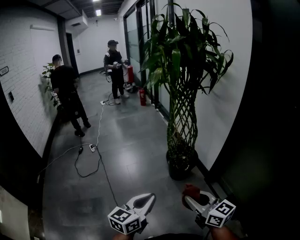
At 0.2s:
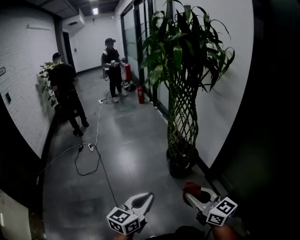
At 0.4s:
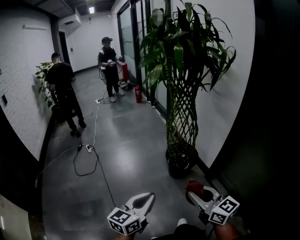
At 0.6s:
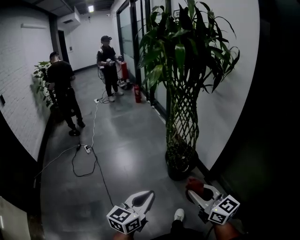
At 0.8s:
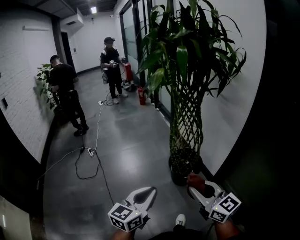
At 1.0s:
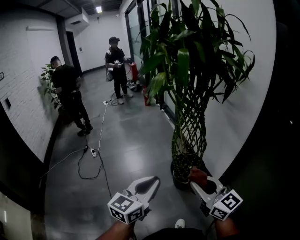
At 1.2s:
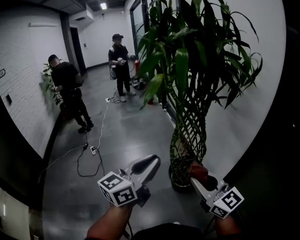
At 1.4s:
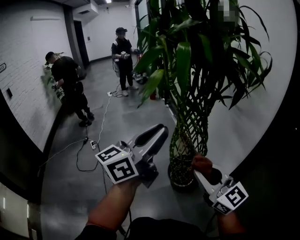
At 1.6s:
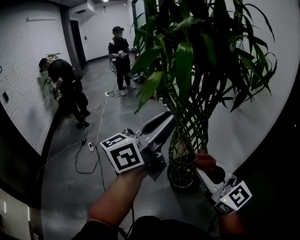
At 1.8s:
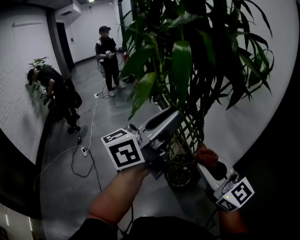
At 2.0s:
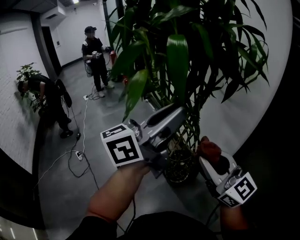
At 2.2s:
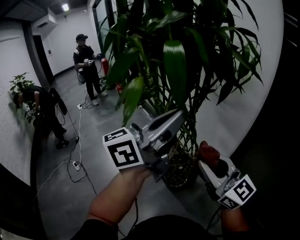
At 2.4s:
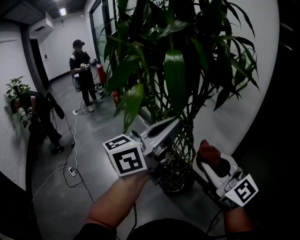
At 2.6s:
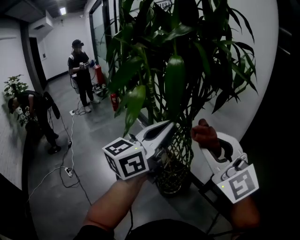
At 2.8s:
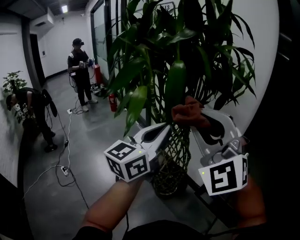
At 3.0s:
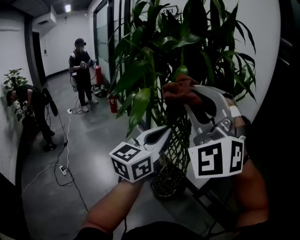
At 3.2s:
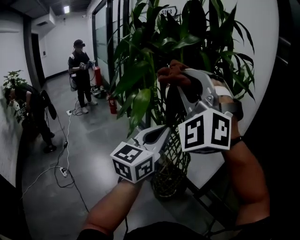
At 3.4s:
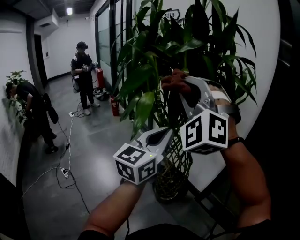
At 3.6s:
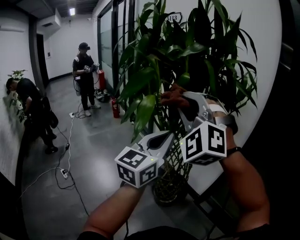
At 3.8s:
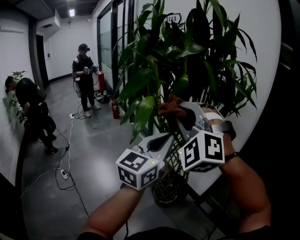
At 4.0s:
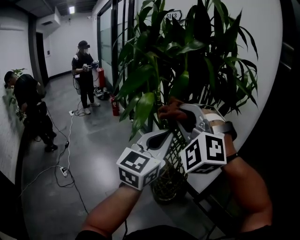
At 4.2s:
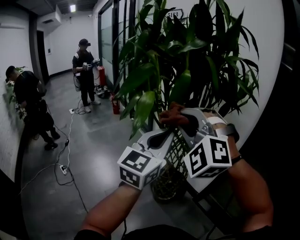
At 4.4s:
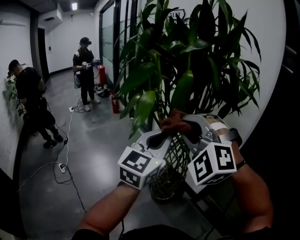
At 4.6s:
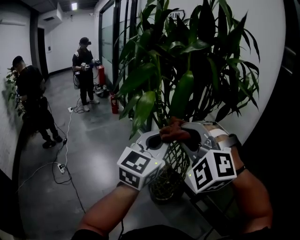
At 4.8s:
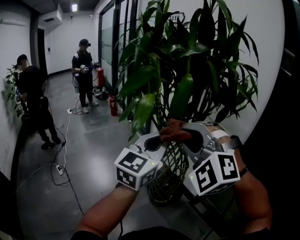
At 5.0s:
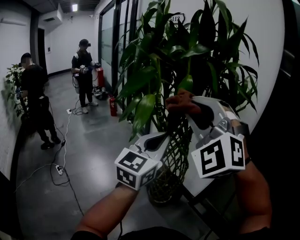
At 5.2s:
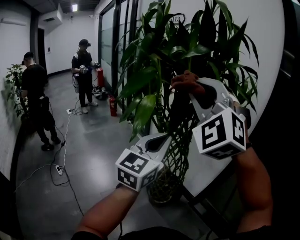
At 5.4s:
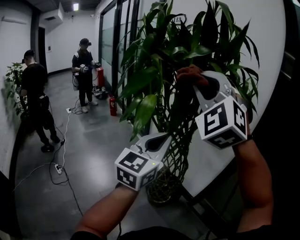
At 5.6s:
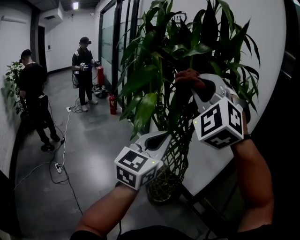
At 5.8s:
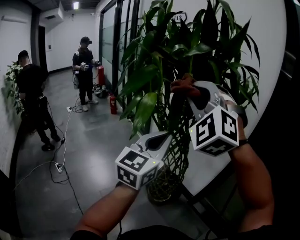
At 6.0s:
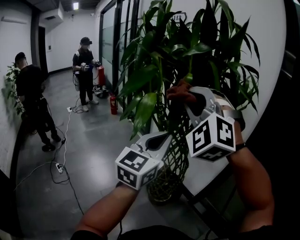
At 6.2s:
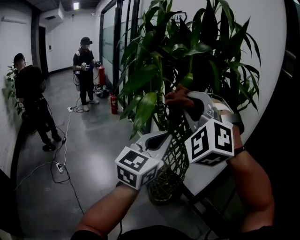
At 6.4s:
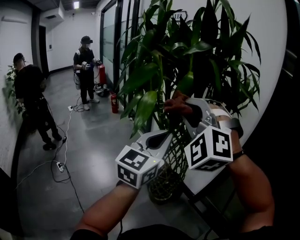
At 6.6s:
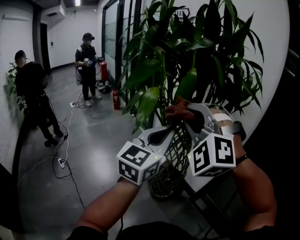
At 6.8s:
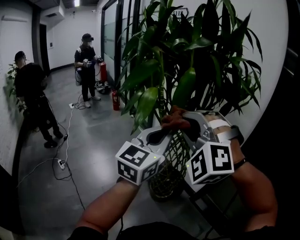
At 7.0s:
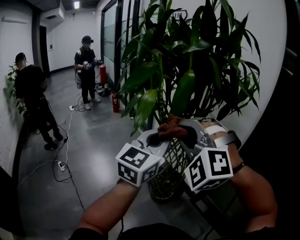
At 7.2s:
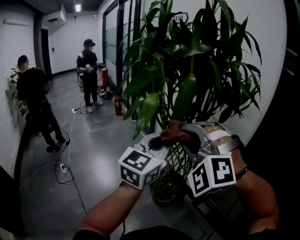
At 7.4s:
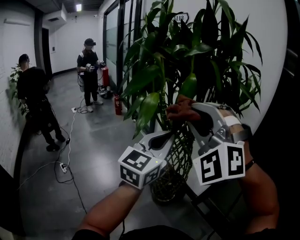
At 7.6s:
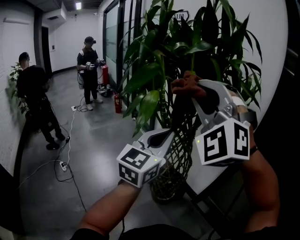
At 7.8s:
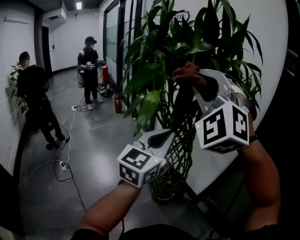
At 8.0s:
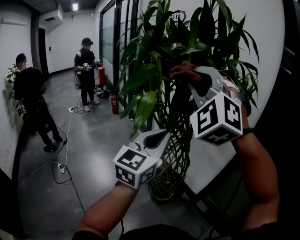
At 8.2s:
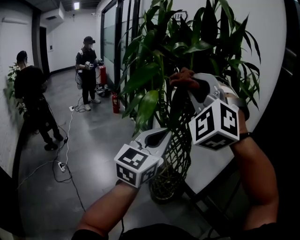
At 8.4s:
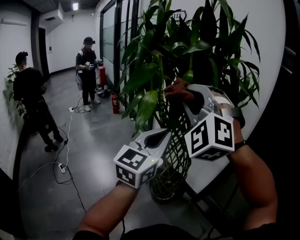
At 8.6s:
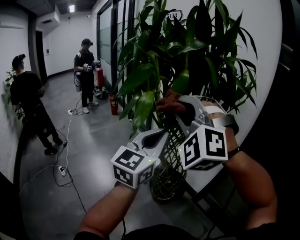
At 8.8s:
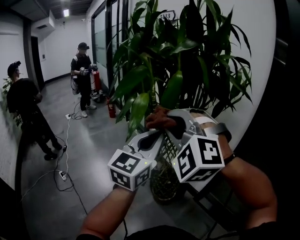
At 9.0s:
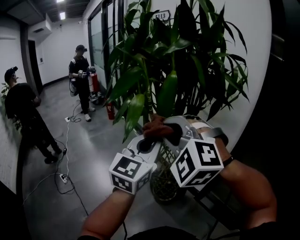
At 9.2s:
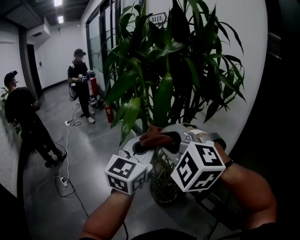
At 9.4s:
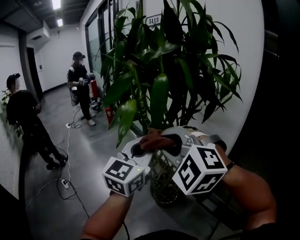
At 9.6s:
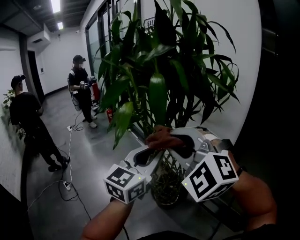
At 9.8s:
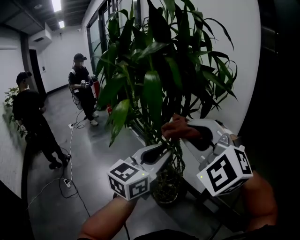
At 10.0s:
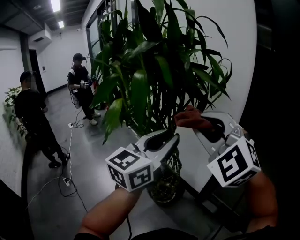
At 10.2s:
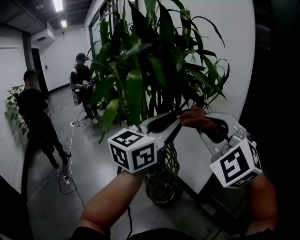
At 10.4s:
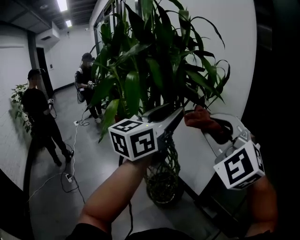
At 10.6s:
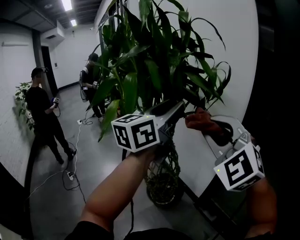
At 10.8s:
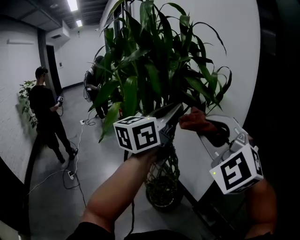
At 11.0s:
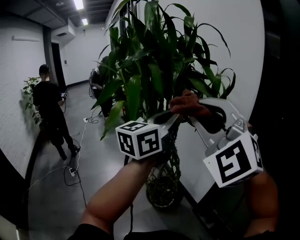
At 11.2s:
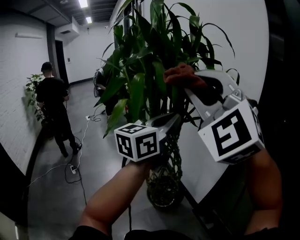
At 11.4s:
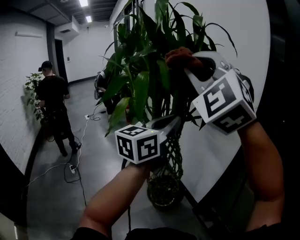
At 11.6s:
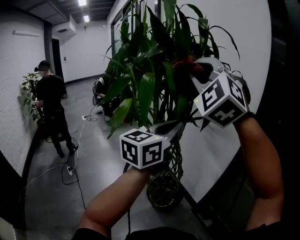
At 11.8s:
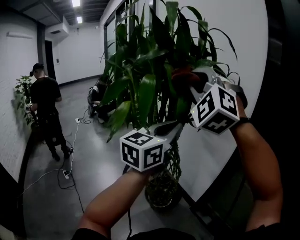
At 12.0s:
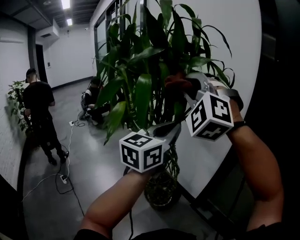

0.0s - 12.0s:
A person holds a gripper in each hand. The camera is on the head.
0.0s - 1.6s: The right gripper travels forward by approximately 35 cm, and changes its angle by roughly 30 degrees. The left gripper shifts about 50 cm forward and upward, swivels about 30 degrees, and opens its fingers.
1.6s - 3.0s: The left gripper heads forward, covering approximately 5 cm, and closes, while the right gripper moves upward and to the left, about 25 cm, and rotates around the line of its fingers by approximately 70 degrees, counterclockwise from behind.
3.0s - 4.4s: The right gripper goes some 10 cm downward, and changes its angle by approximately 30 degrees.
4.4s - 6.0s: The right gripper moves upward, about 10 cm.
6.0s - 7.6s: The right gripper travels downward and back again, some 10 cm each way.
7.6s - 9.0s: The right gripper goes approximately 15 cm downward, and turns by roughly 30 degrees.
9.0s - 10.4s: The right gripper heads to the right, covering some 25 cm. The left gripper shifts approximately 20 cm to the right and upward, turns by about 20 degrees, and opens up.
10.4s - 12.0s: The right gripper shifts about 15 cm to the left, forward and upward, and rotates some 20 degrees; the left gripper changes place by approximately 5 cm, and closes up.

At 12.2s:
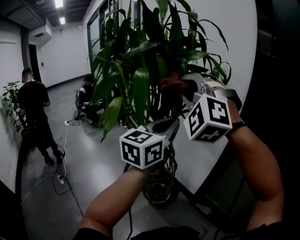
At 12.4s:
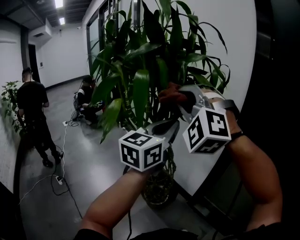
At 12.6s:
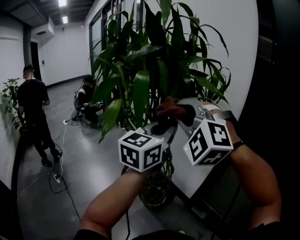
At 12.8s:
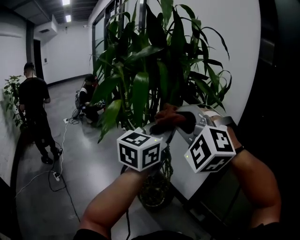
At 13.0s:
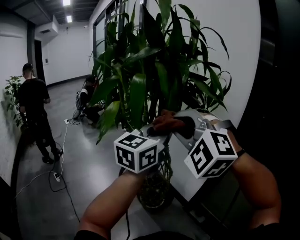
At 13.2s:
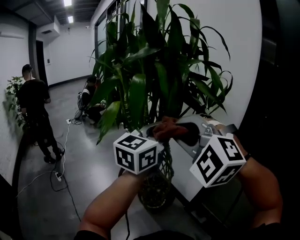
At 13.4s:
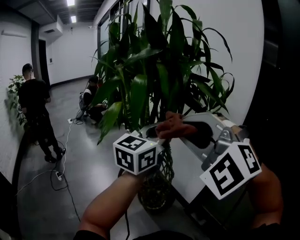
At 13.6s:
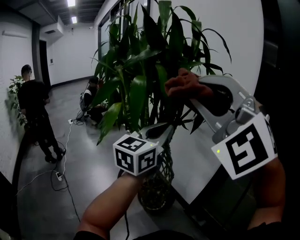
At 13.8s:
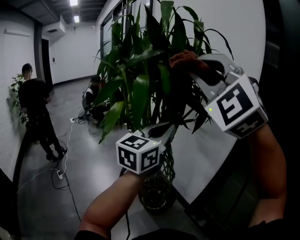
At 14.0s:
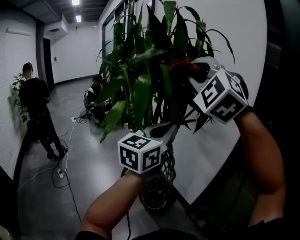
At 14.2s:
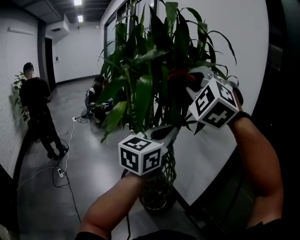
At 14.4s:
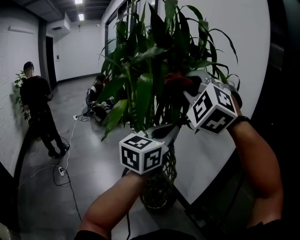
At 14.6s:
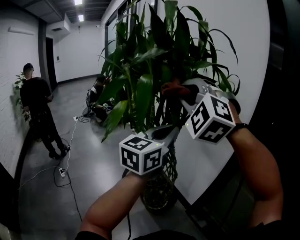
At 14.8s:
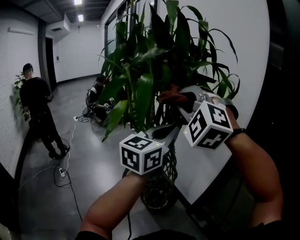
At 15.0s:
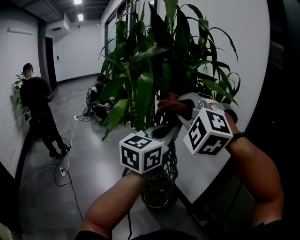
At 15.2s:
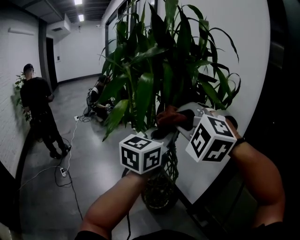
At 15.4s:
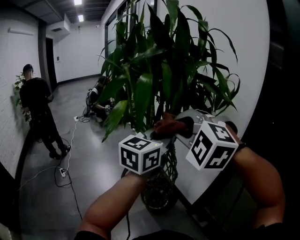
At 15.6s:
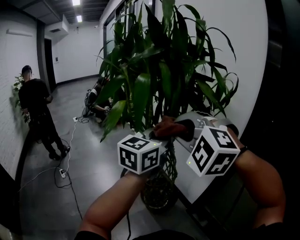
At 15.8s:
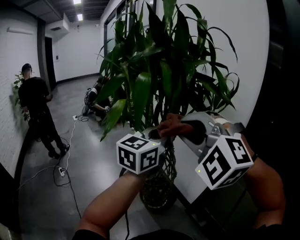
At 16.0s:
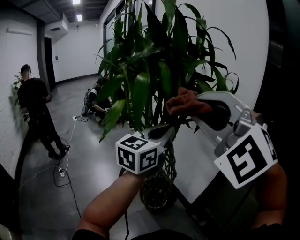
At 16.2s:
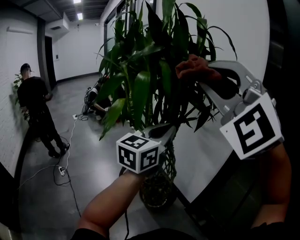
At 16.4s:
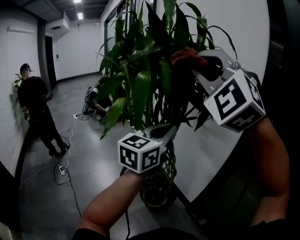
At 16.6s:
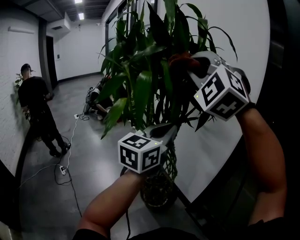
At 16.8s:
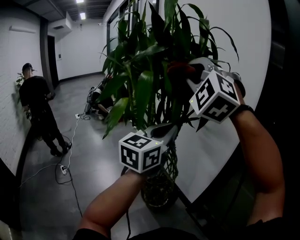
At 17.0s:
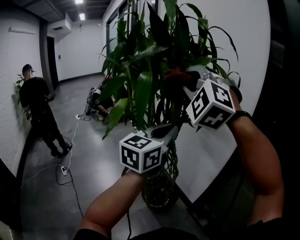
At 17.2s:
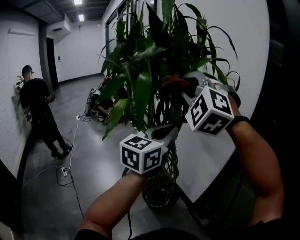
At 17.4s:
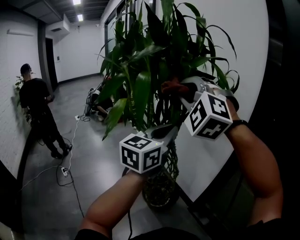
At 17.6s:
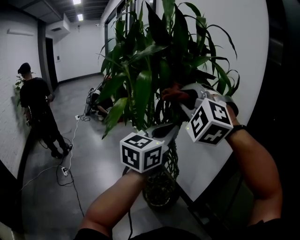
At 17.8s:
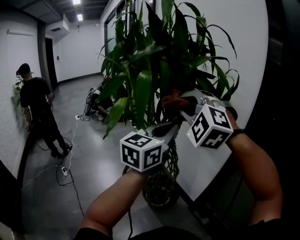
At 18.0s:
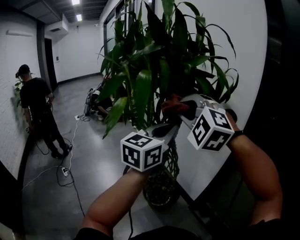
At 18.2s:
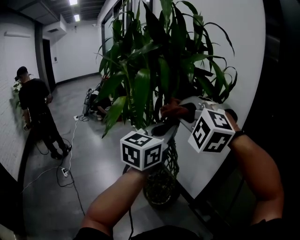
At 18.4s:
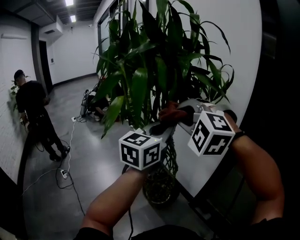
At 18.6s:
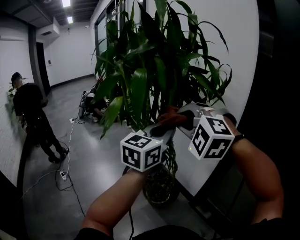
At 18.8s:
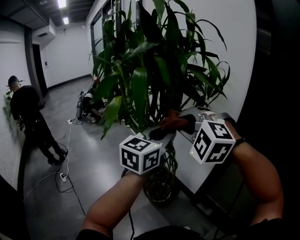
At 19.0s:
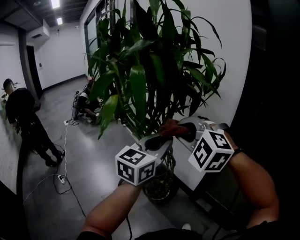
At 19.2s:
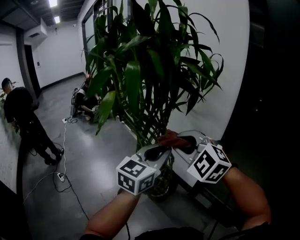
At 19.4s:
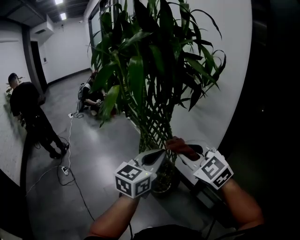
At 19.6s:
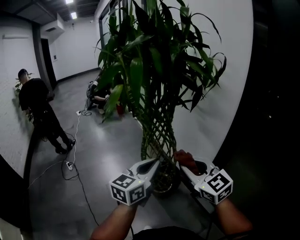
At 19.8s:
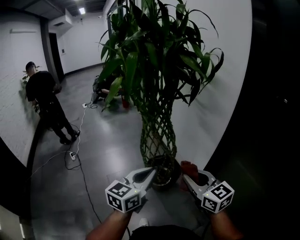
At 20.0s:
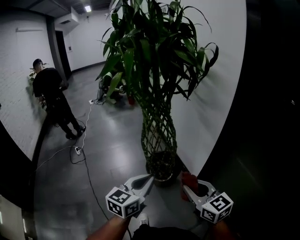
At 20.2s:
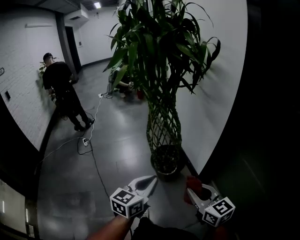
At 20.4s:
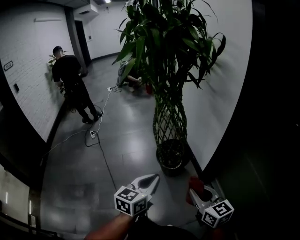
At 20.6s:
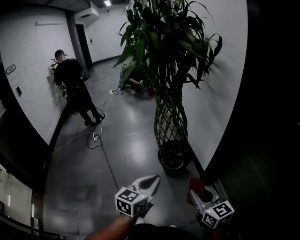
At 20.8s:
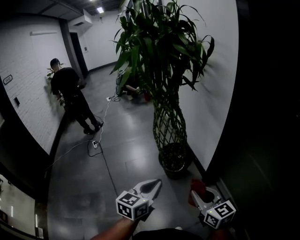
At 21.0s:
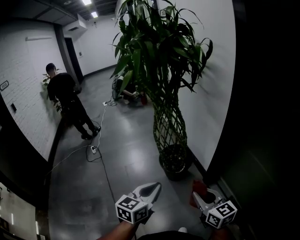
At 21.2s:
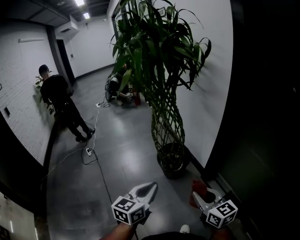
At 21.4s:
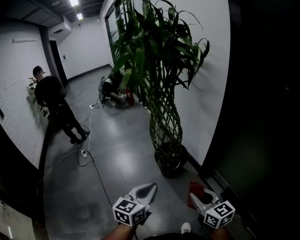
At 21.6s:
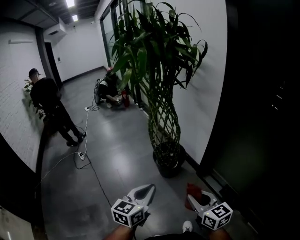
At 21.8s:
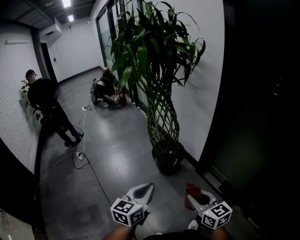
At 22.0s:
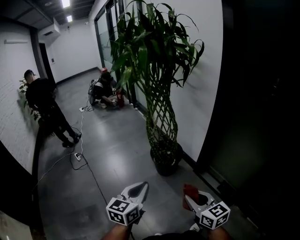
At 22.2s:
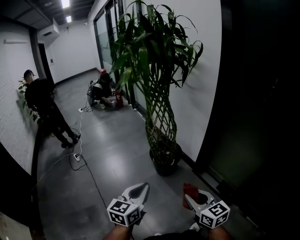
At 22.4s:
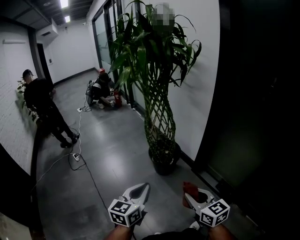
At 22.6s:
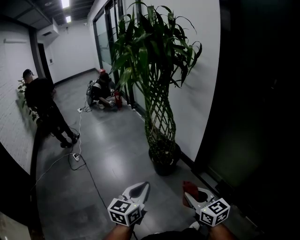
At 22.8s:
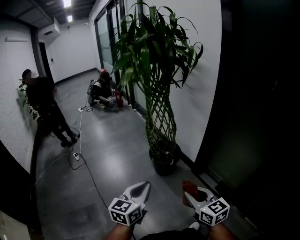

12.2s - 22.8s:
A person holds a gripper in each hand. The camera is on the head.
12.2s - 13.8s: The right gripper shifts approximately 10 cm upward.
13.8s - 15.2s: The right gripper heads downward, covering approximately 20 cm, and swivels approximately 30 degrees.
15.2s - 16.8s: The right gripper travels upward by roughly 15 cm, and swivels some 20 degrees.
16.8s - 18.2s: The right gripper shifts some 15 cm downward, and turns by some 20 degrees.
18.2s - 19.8s: The right gripper travels downward, backward and to the right by some 35 cm, and twists some 80 degrees clockwise, seen from behind. Meanwhile the left gripper heads backward and downward, covering some 25 cm.
19.8s - 21.2s: Both grippers move backward, about 20 cm.
21.2s - 22.8s: The grippers both shift to the left and backward by some 15 cm.

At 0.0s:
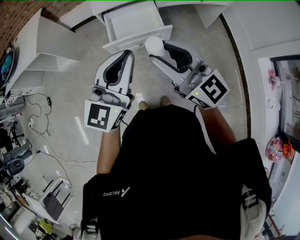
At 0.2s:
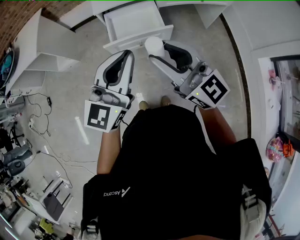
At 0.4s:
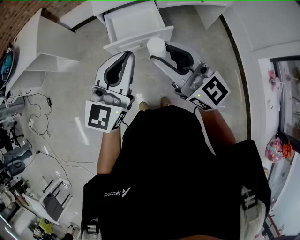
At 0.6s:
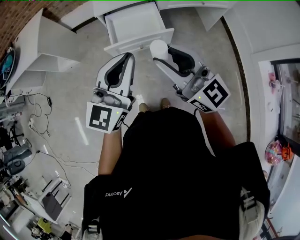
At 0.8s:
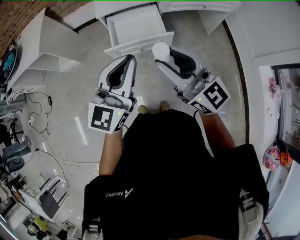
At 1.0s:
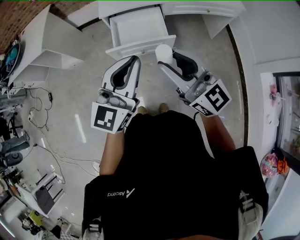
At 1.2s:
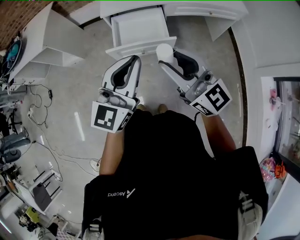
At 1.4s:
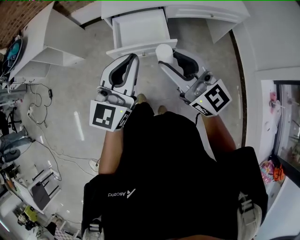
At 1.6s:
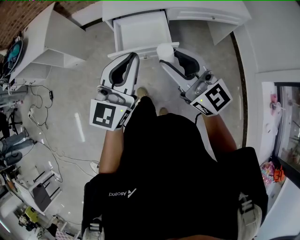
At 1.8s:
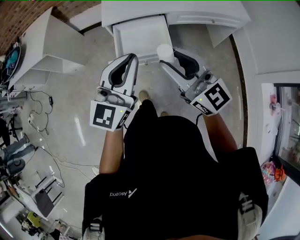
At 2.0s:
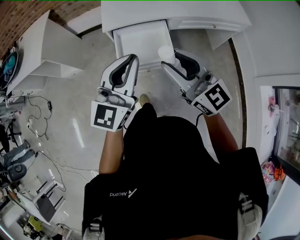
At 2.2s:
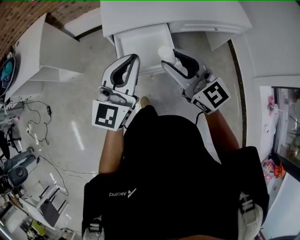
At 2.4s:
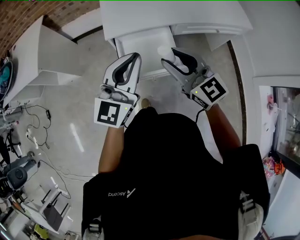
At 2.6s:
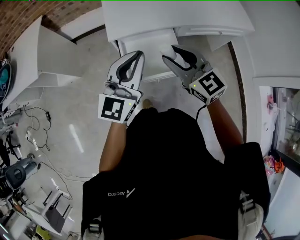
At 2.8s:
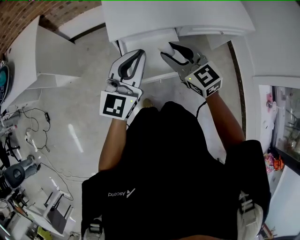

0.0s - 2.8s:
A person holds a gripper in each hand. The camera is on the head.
0.0s - 1.4s: The right gripper ends up approximately 5 cm from where it was. The left gripper is displaced forward by roughly 5 cm.
1.4s - 2.8s: The two grippers go some 30 cm forward and to the left. The right gripper swivels roughly 30 degrees.
